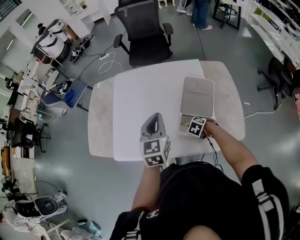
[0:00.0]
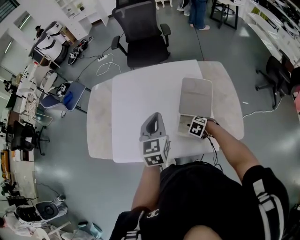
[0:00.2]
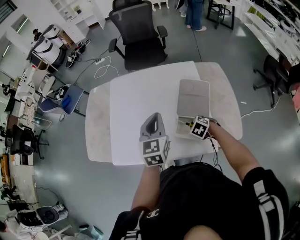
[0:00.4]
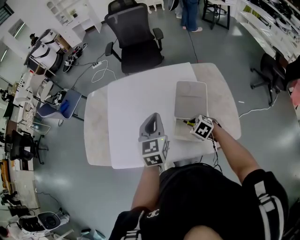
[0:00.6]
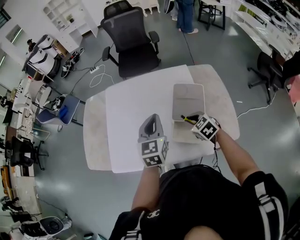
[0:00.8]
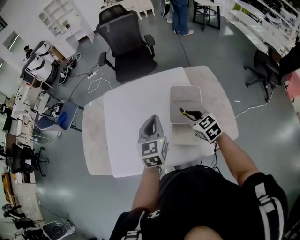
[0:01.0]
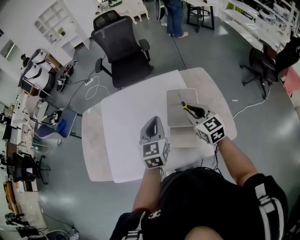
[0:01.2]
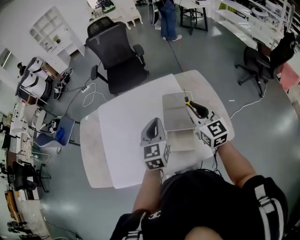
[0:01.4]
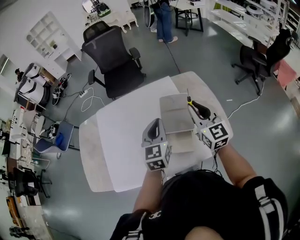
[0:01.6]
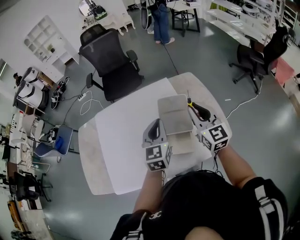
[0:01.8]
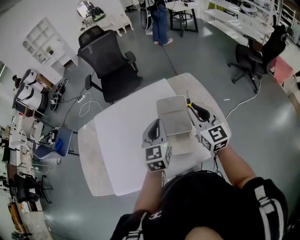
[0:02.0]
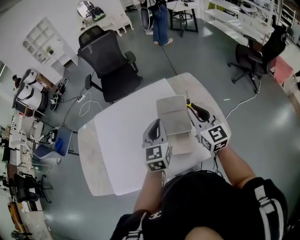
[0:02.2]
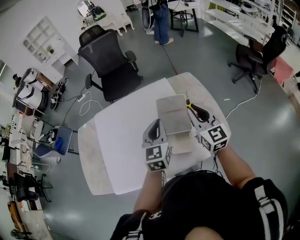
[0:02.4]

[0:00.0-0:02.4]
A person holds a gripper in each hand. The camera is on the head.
0.0 to 1.2 s: The left gripper shifts by approximately 10 cm, while the right gripper goes some 30 cm upward, and points its fingers approximately 60 degrees further upward.
1.2 to 2.4 s: The right gripper is displaced to the right and upward by approximately 10 cm, and swivels about 20 degrees. Meanwhile the left gripper travels to the right by about 5 cm.

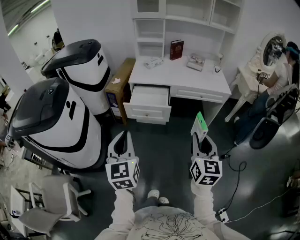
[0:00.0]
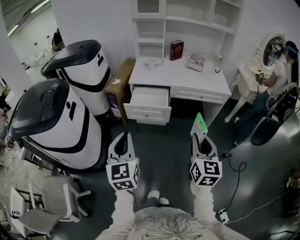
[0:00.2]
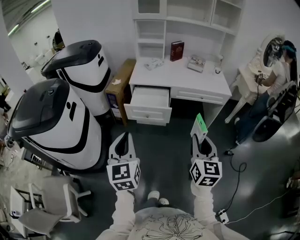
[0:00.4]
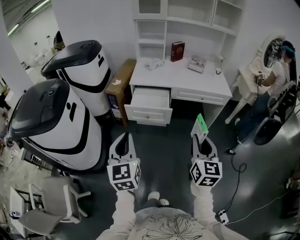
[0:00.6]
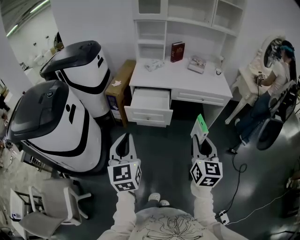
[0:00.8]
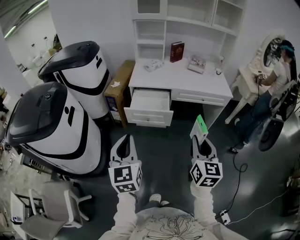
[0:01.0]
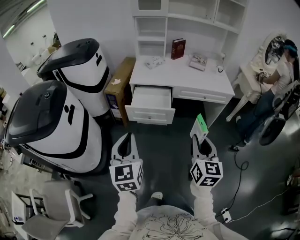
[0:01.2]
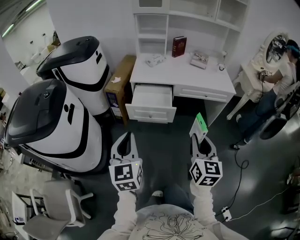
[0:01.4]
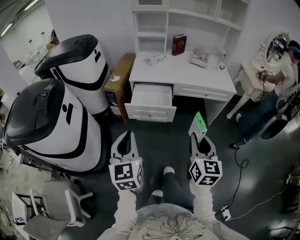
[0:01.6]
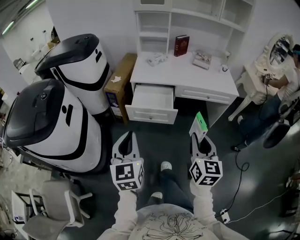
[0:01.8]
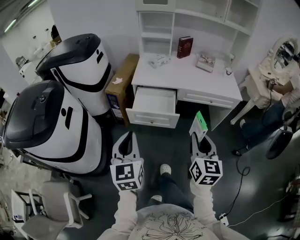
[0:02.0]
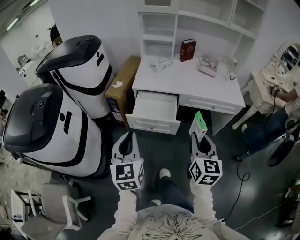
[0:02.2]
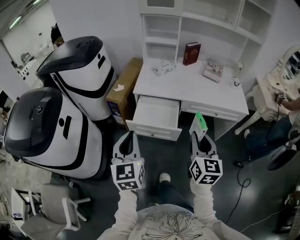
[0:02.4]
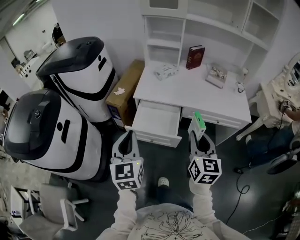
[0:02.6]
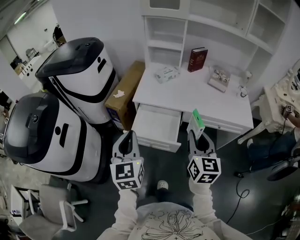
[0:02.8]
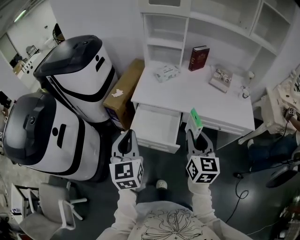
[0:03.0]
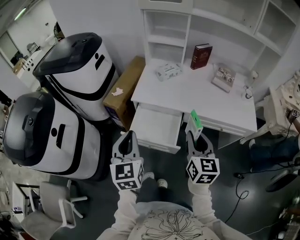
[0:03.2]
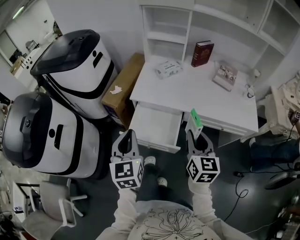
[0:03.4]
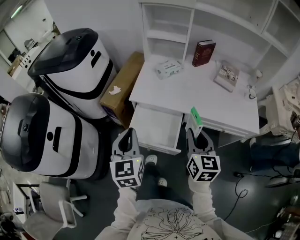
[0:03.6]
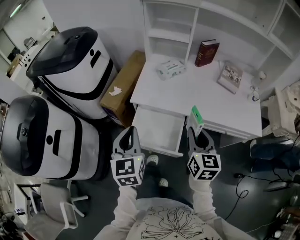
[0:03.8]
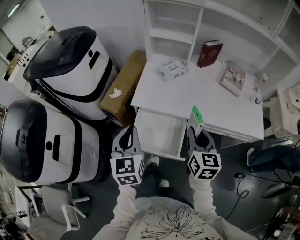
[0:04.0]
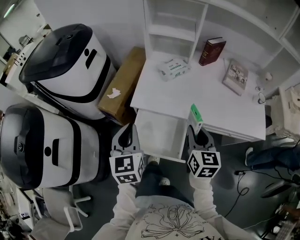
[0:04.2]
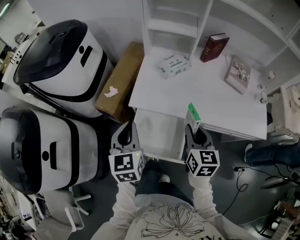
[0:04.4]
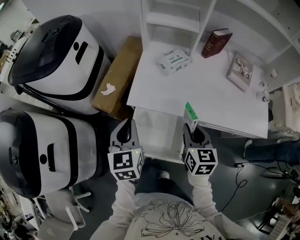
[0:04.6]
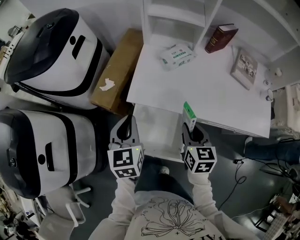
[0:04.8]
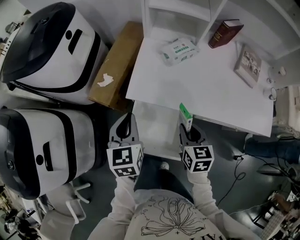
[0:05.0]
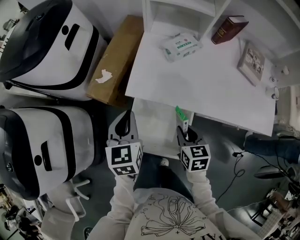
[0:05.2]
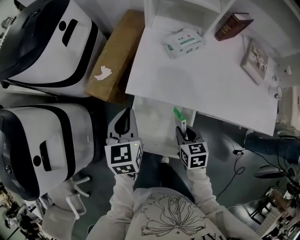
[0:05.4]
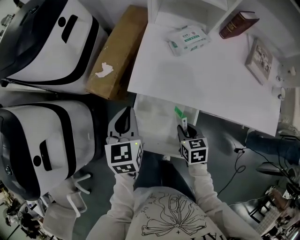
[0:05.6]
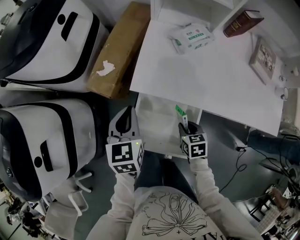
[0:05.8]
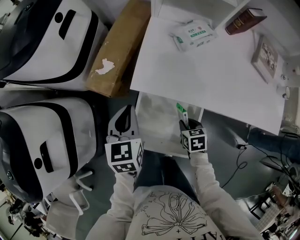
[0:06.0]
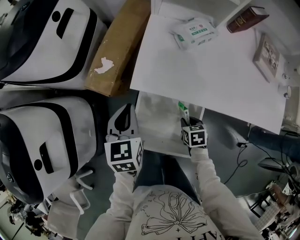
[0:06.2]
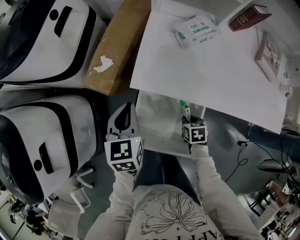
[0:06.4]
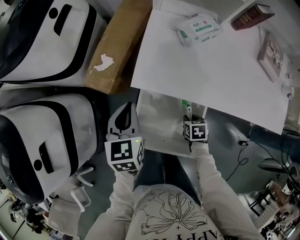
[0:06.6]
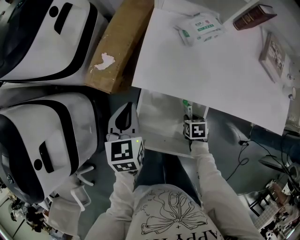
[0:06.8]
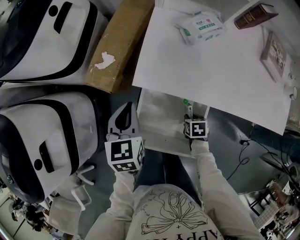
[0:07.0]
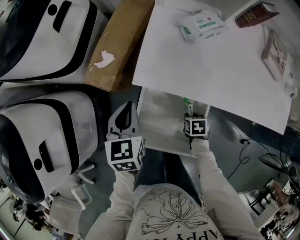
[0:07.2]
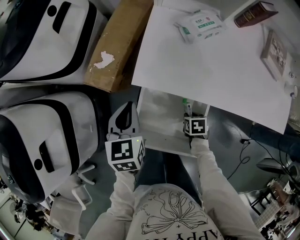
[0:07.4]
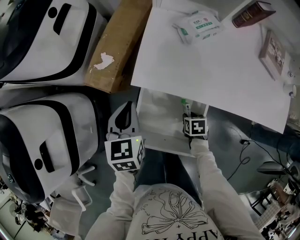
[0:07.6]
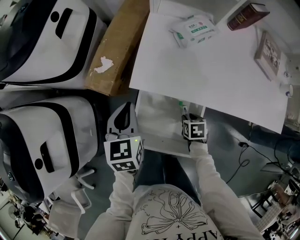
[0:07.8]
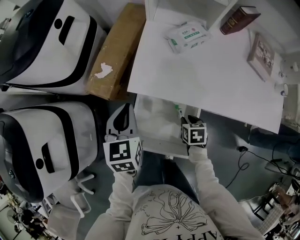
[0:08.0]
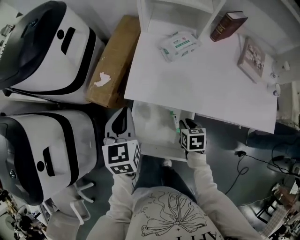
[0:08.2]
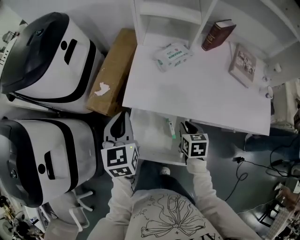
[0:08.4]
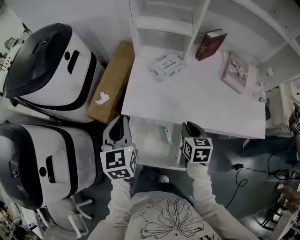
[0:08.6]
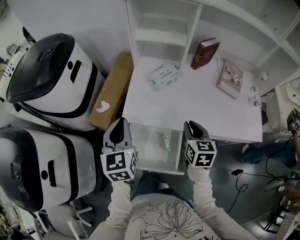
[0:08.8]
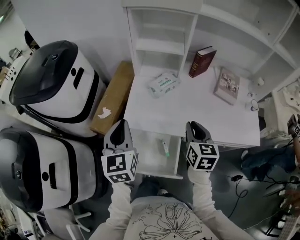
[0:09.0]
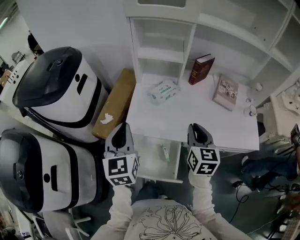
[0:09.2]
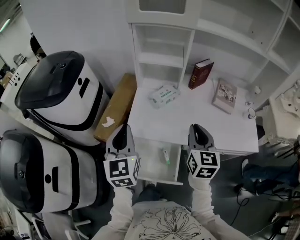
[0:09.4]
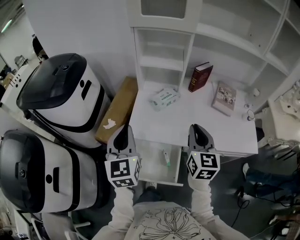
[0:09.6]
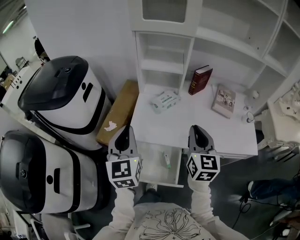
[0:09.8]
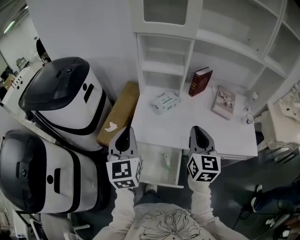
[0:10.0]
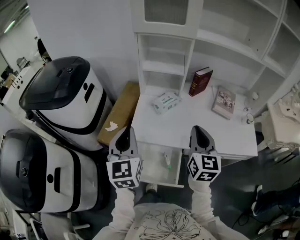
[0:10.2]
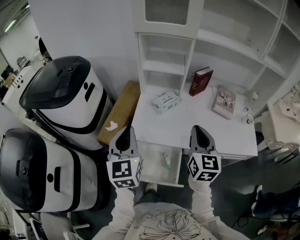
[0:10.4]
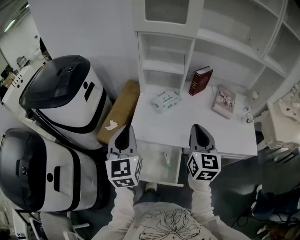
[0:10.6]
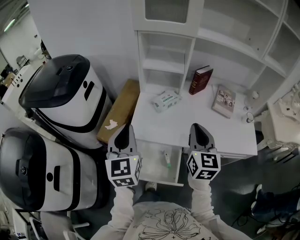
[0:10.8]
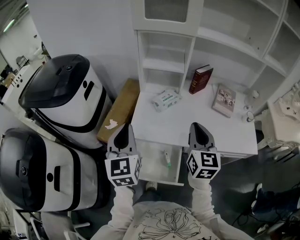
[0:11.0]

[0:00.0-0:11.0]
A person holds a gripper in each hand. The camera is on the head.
0.0 to 1.6 s: The left gripper is displaced forward by approximately 5 cm; the right gripper is displaced forward and to the left by about 10 cm.
1.6 to 3.2 s: The two grippers go roughly 35 cm forward.
3.2 to 4.8 s: Both grippers move forward and downward, some 25 cm.
4.8 to 6.2 s: The left gripper moves downward, approximately 10 cm, while the right gripper heads downward, covering approximately 25 cm, and points its fingers approximately 30 degrees further downward.
6.2 to 7.8 s: The grippers move only a little.
7.8 to 9.4 s: The left gripper is displaced upward by some 25 cm, and swivels some 30 degrees. Meanwhile the right gripper heads upward, covering some 40 cm, tips its fingers upward by approximately 60 degrees, and closes its fingers.
9.4 to 11.0 s: The grippers move only a little.

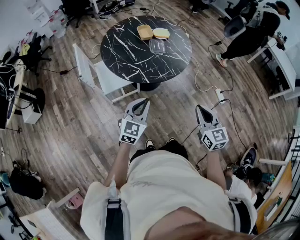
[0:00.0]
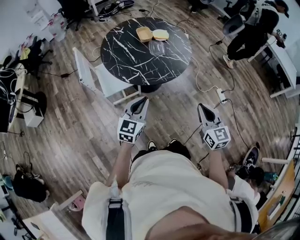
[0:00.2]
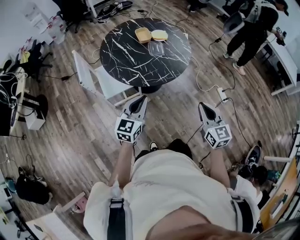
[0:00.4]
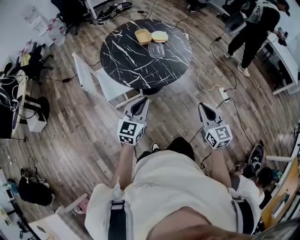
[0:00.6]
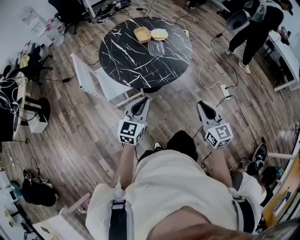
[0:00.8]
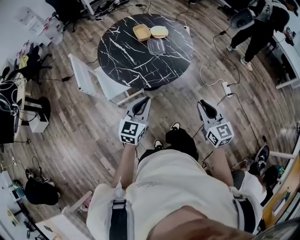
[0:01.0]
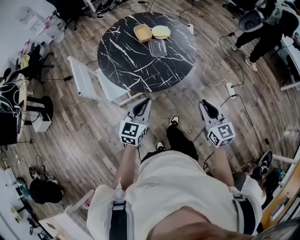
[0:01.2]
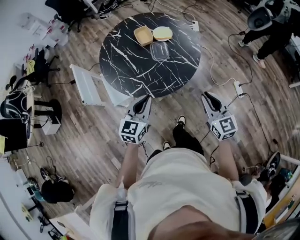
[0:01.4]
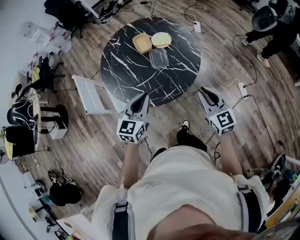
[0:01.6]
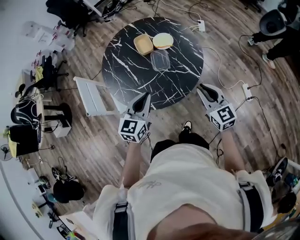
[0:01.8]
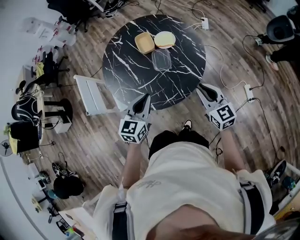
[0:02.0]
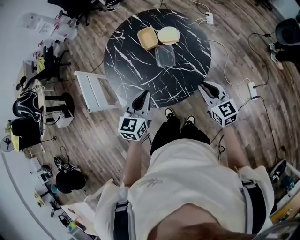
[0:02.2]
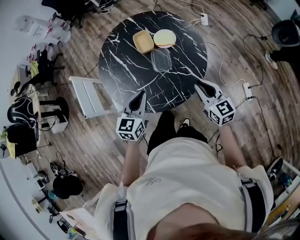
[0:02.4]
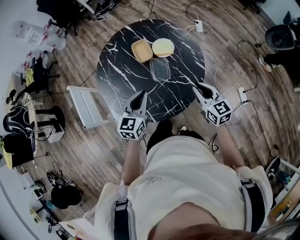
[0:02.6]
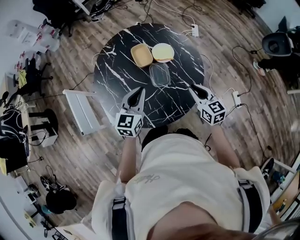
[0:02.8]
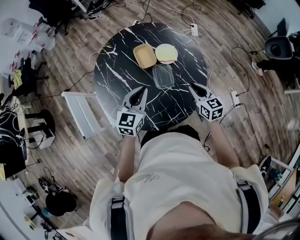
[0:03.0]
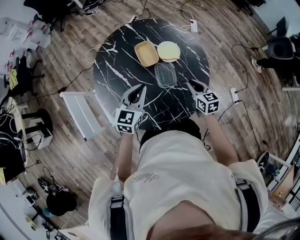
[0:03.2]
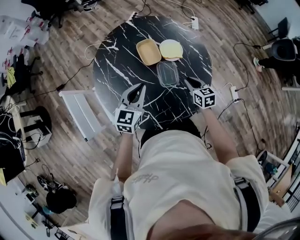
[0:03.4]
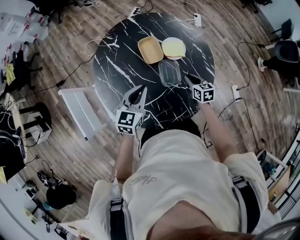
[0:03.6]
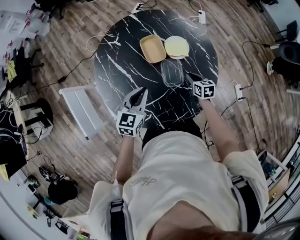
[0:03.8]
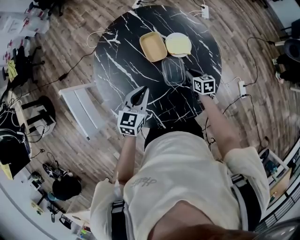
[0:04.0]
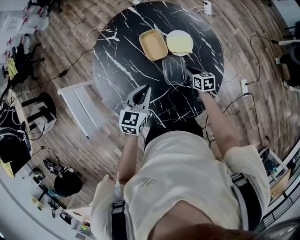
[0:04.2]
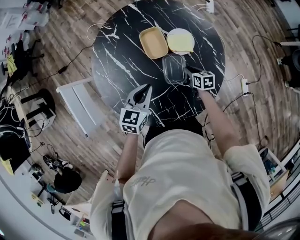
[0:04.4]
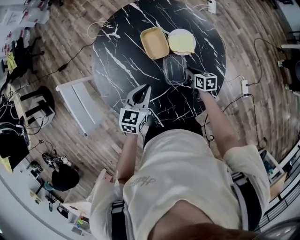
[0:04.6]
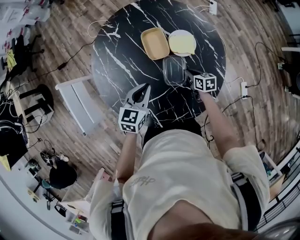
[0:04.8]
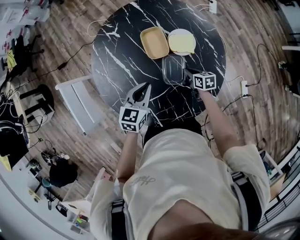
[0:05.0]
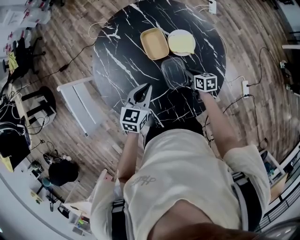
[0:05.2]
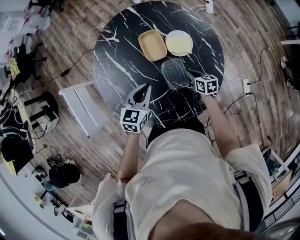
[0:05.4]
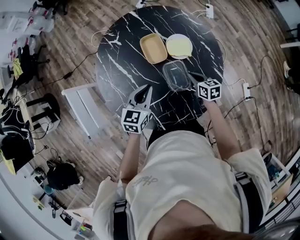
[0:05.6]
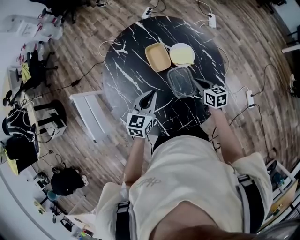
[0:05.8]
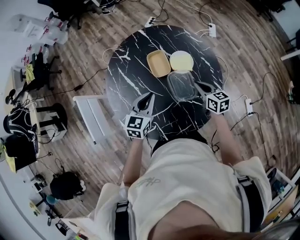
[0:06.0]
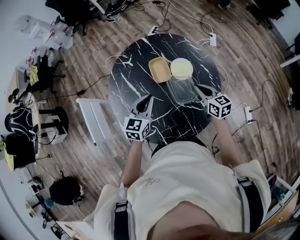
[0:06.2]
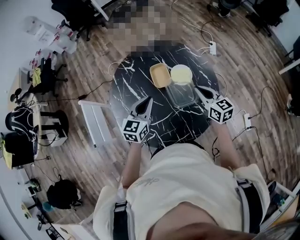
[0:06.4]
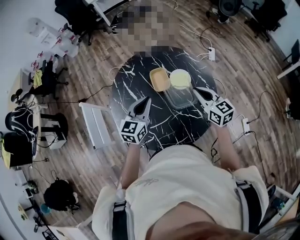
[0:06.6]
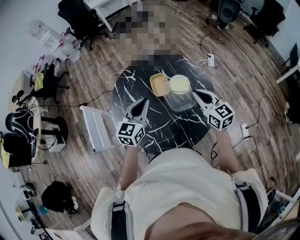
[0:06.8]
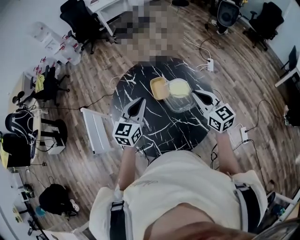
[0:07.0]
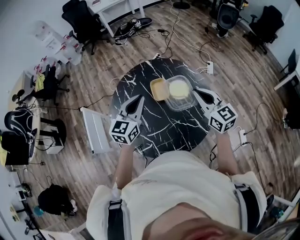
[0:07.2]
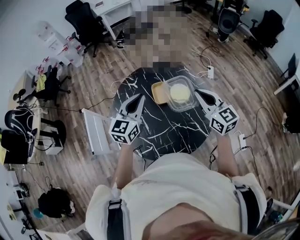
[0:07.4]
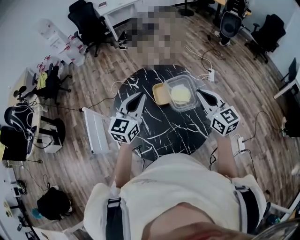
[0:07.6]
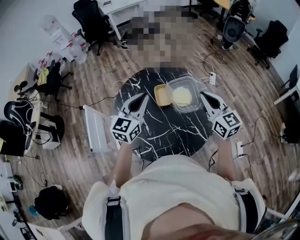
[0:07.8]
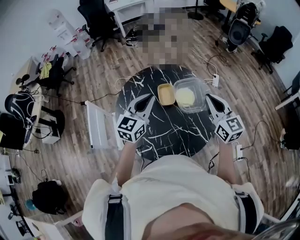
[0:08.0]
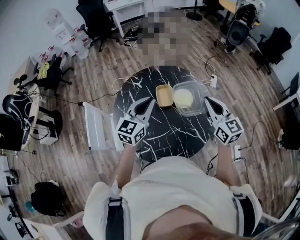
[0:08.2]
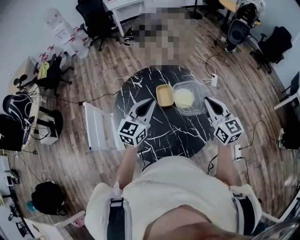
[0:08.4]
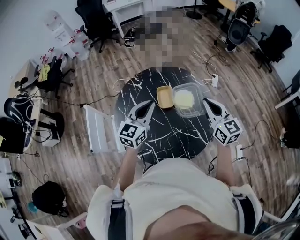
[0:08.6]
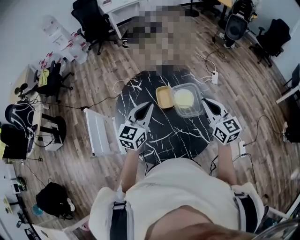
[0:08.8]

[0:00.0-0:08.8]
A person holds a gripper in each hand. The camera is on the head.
0.0 to 1.4 s: The grippers both shift forward by about 15 cm.
1.4 to 3.0 s: Both grippers move forward, about 30 cm.
3.0 to 4.4 s: The right gripper moves downward and forward, about 25 cm, and turns by roughly 30 degrees. Meanwhile the left gripper is displaced downward and forward by roughly 10 cm.
4.4 to 5.8 s: The right gripper moves upward, some 10 cm.
5.8 to 7.4 s: Both grippers move upward, roughly 25 cm. The left gripper changes its angle by about 20 degrees. Meanwhile the right gripper changes its angle by some 40 degrees.
7.4 to 8.8 s: The grippers move only a little.

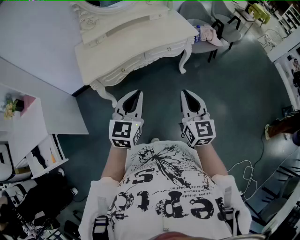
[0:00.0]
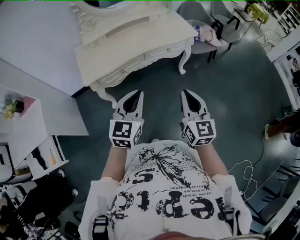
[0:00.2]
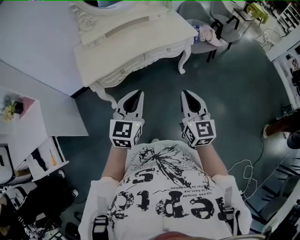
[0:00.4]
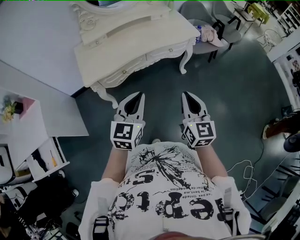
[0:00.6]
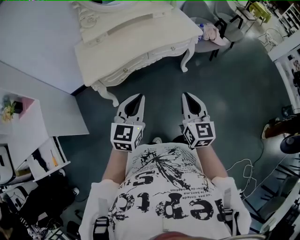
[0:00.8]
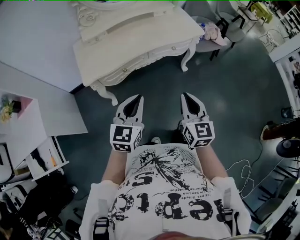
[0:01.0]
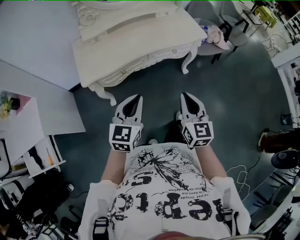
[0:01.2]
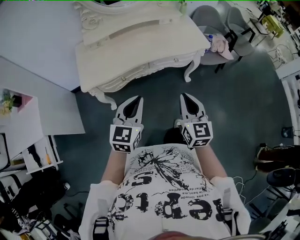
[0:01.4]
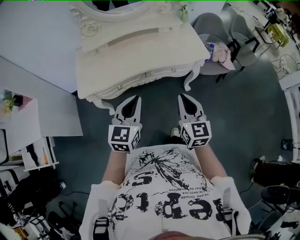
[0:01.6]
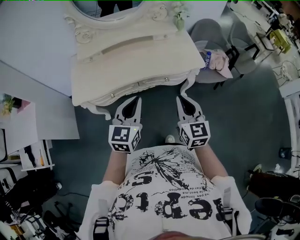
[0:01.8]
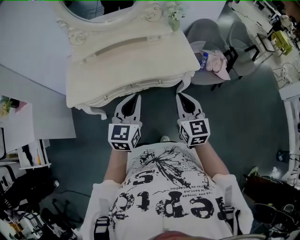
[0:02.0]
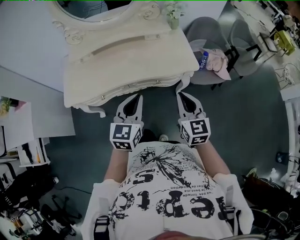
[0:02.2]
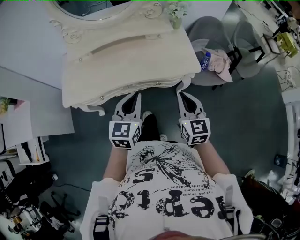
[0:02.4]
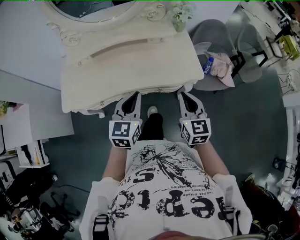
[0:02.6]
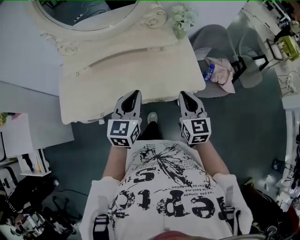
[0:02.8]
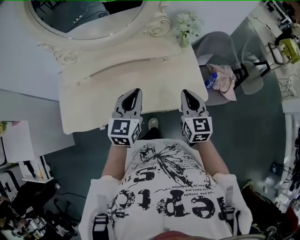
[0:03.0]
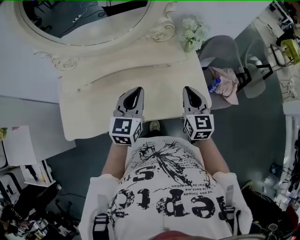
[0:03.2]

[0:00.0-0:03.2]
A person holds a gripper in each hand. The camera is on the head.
0.0 to 1.6 s: Both grippers travel together forward, roughly 20 cm.
1.6 to 3.2 s: Both grippers are carried forward, roughly 40 cm.
